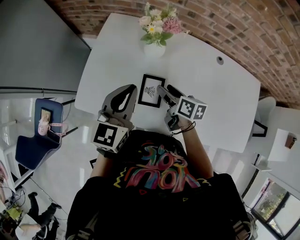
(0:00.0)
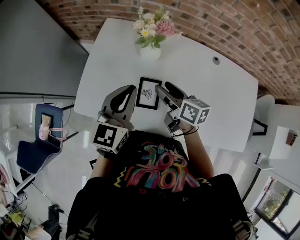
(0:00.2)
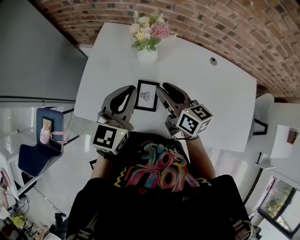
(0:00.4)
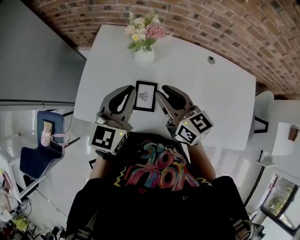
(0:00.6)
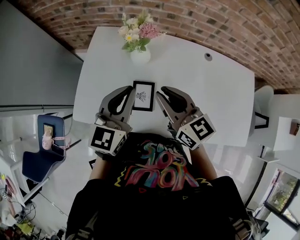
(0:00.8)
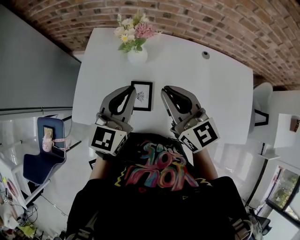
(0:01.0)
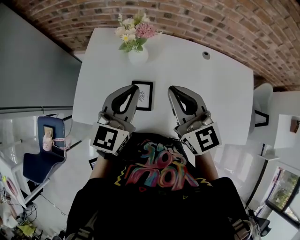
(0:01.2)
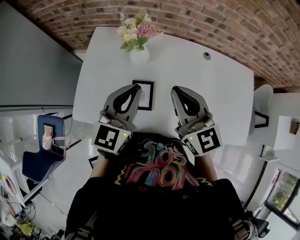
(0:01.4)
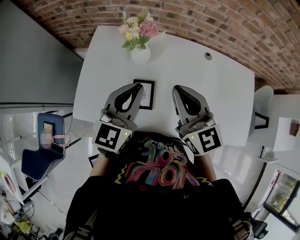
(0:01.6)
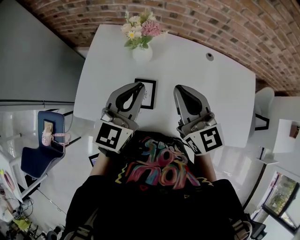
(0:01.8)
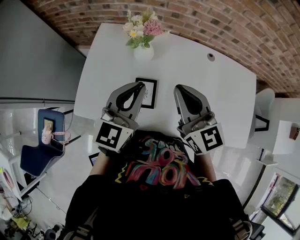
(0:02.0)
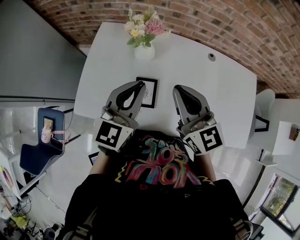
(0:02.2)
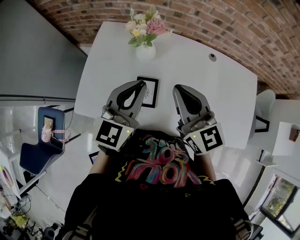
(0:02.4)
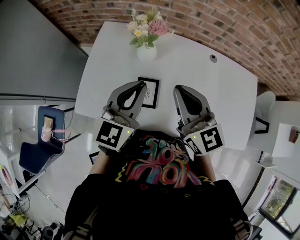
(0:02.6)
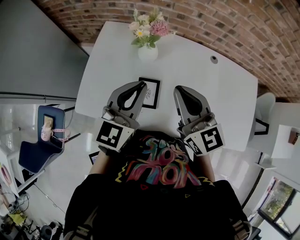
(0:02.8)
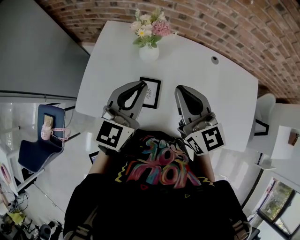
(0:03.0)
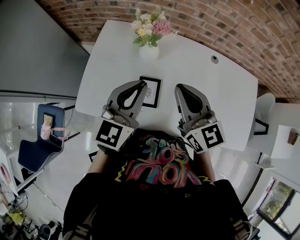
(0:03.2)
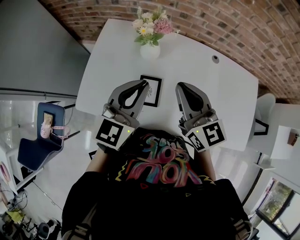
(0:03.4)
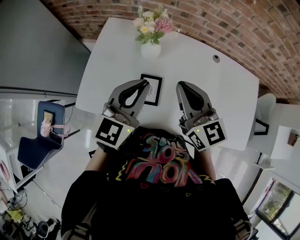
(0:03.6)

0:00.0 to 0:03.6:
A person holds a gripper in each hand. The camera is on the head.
0:00.0 to 0:01.8: The left gripper travels to the right and upward by roughly 10 cm; the right gripper is displaced upward by some 20 cm, rolls counterclockwise, seen from behind, by some 50 degrees, and closes up.
0:01.8 to 0:03.6: The grippers move only a little.

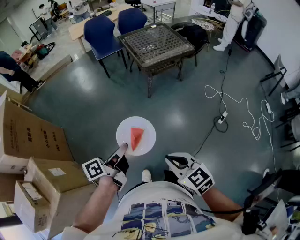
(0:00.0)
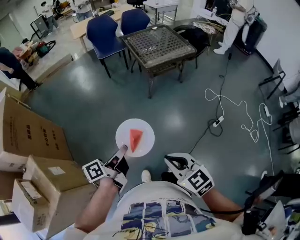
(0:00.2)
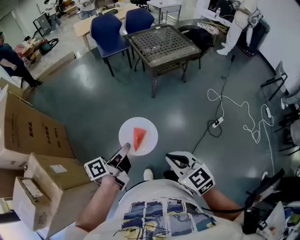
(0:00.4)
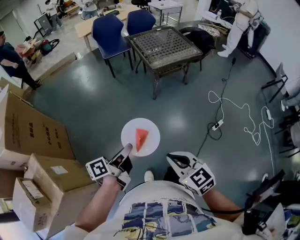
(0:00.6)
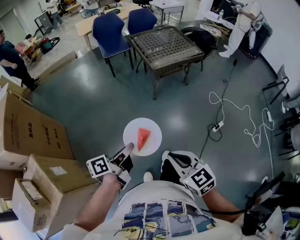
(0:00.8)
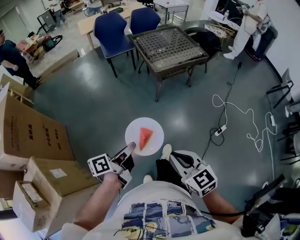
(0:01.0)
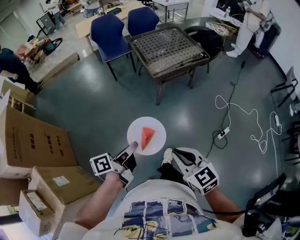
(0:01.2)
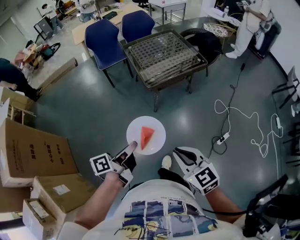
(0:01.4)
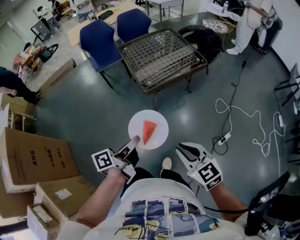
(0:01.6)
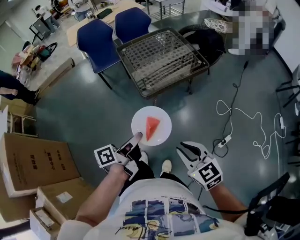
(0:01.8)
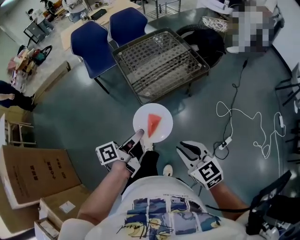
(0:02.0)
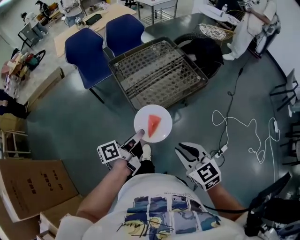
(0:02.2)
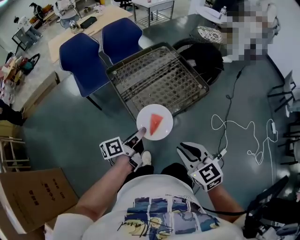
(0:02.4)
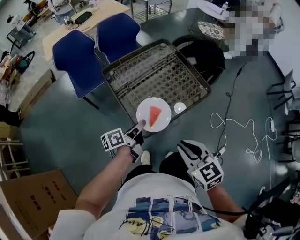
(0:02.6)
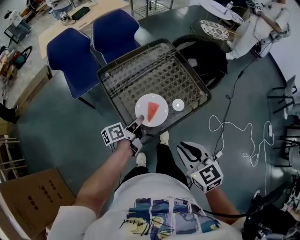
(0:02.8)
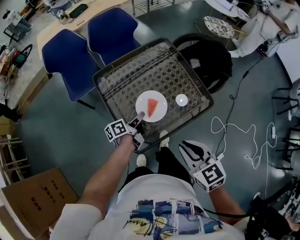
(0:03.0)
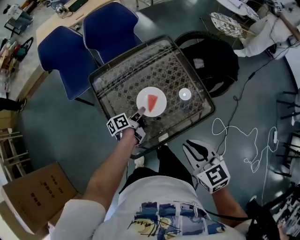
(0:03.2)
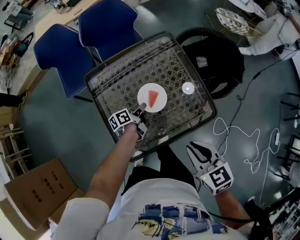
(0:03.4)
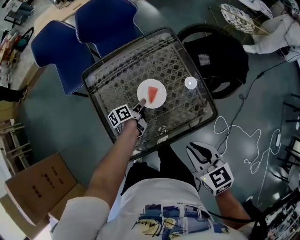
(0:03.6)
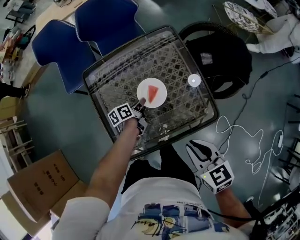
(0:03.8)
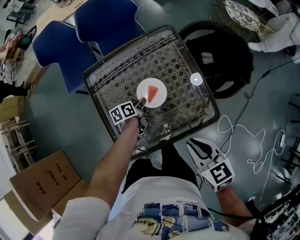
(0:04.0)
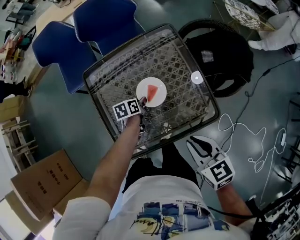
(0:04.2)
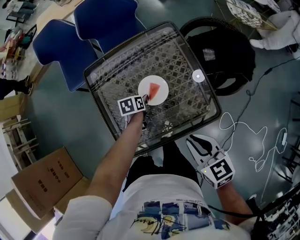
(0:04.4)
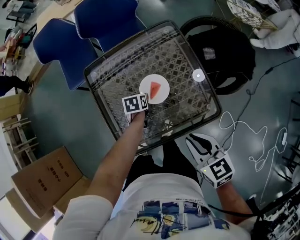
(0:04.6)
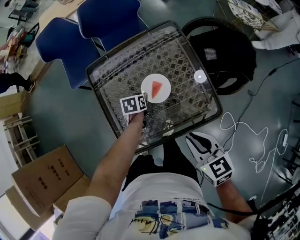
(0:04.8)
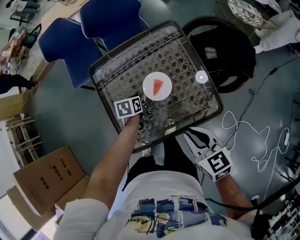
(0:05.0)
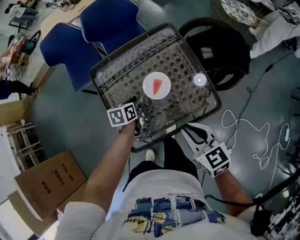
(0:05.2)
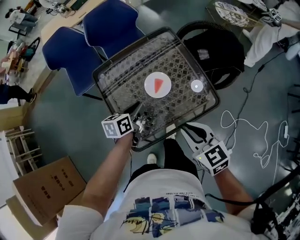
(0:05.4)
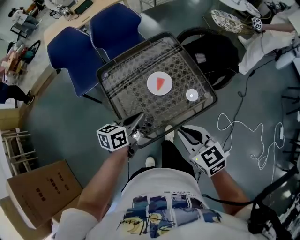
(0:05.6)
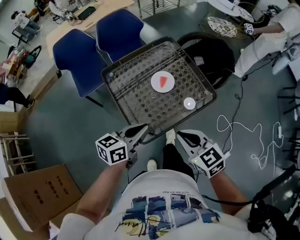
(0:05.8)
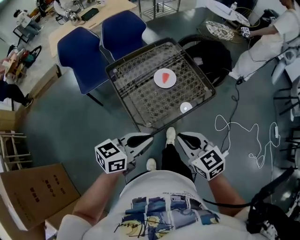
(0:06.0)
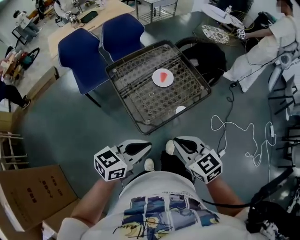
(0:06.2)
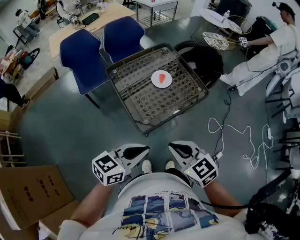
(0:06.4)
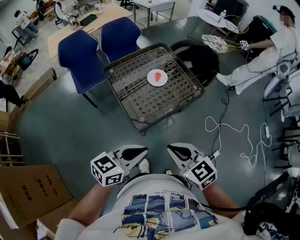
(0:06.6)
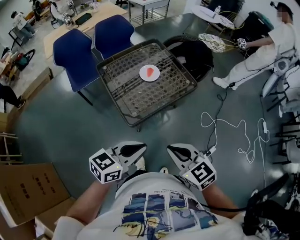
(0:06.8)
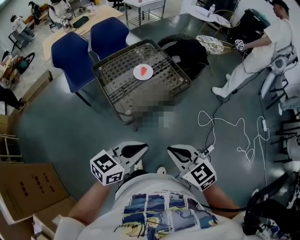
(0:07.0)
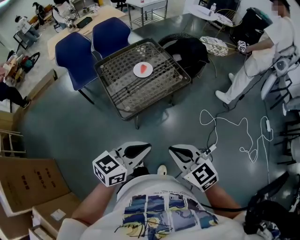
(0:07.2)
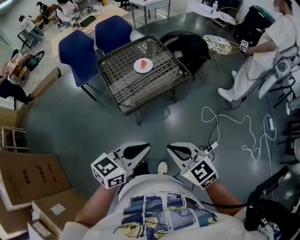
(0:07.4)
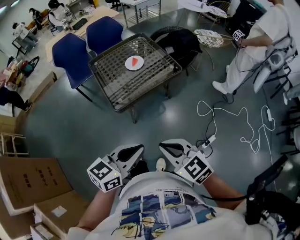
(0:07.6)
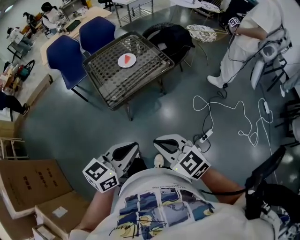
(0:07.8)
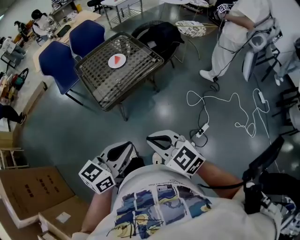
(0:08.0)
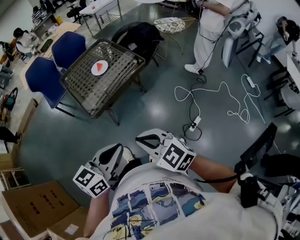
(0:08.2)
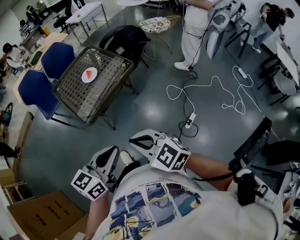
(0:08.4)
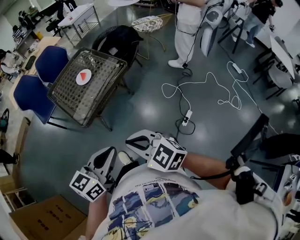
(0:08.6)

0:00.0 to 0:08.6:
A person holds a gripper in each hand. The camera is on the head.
0:00.0 to 0:01.4: Both grippers travel together forward, approximately 25 cm.
0:01.4 to 0:02.8: The two grippers travel together, forward, approximately 60 cm.
0:02.8 to 0:04.4: The left gripper moves forward, downward and to the right, roughly 30 cm, tilts its fingers about 50 degrees downward, and opens its fingers. The right gripper shifts approximately 30 cm forward, to the right and downward.
0:04.4 to 0:05.8: The right gripper travels backward, to the left and upward by about 25 cm. The left gripper goes roughly 40 cm upward and backward, points its fingers some 40 degrees further upward, and closes its fingers.
0:05.8 to 0:07.2: The two grippers go approximately 30 cm backward and to the right.
0:07.2 to 0:08.6: The two grippers go approximately 10 cm backward and to the right.

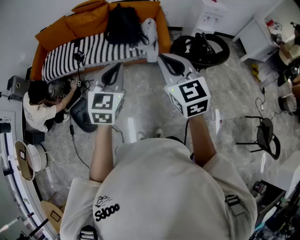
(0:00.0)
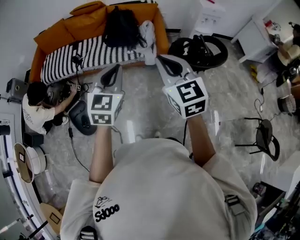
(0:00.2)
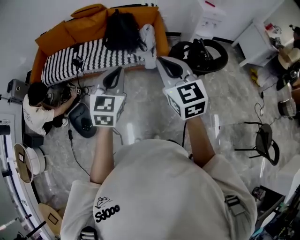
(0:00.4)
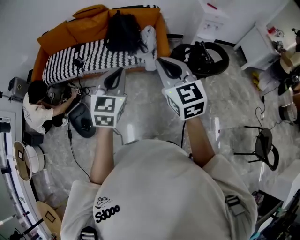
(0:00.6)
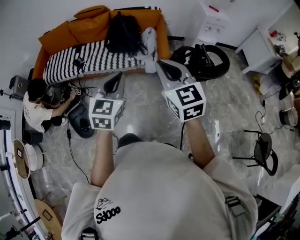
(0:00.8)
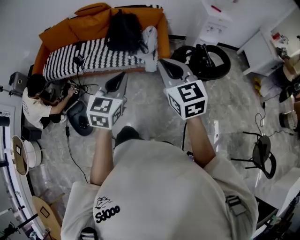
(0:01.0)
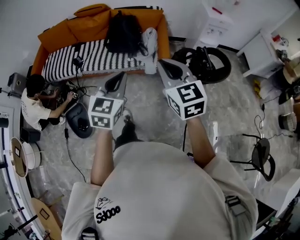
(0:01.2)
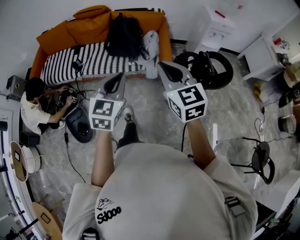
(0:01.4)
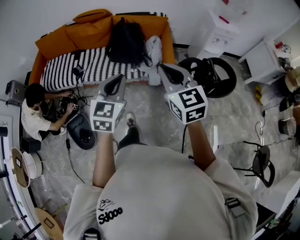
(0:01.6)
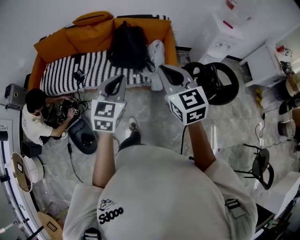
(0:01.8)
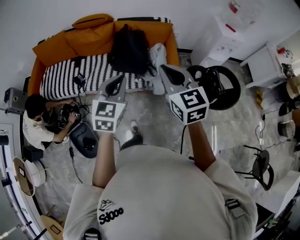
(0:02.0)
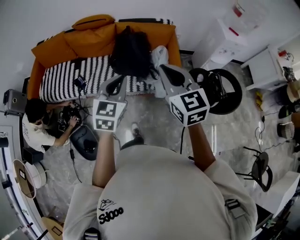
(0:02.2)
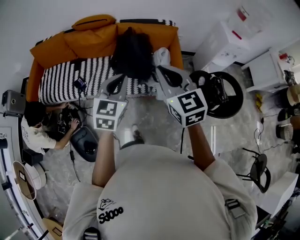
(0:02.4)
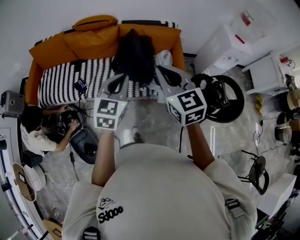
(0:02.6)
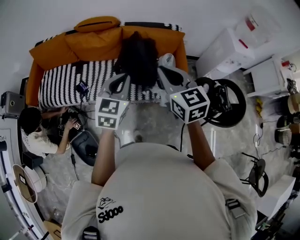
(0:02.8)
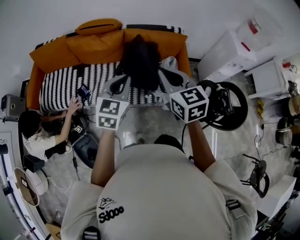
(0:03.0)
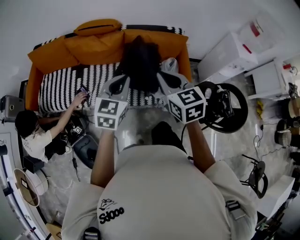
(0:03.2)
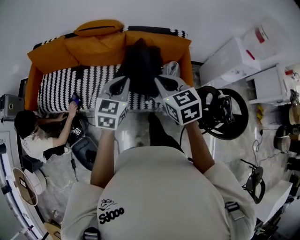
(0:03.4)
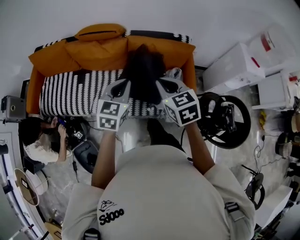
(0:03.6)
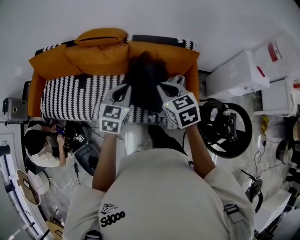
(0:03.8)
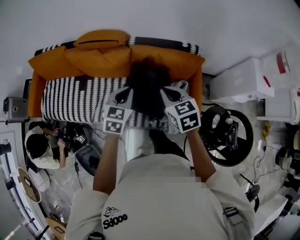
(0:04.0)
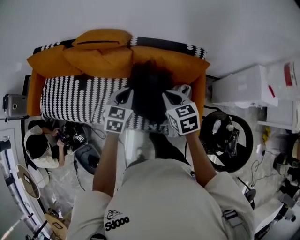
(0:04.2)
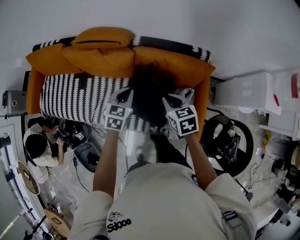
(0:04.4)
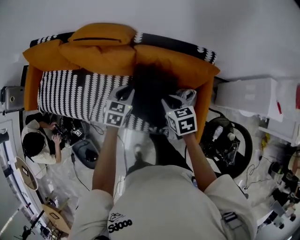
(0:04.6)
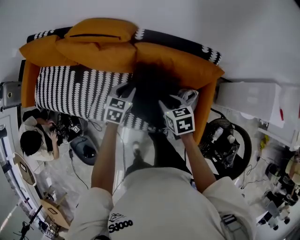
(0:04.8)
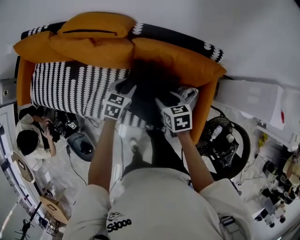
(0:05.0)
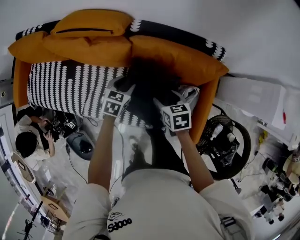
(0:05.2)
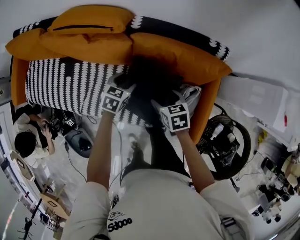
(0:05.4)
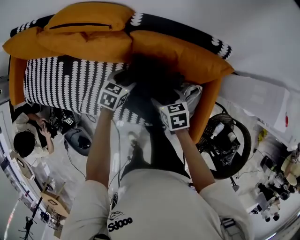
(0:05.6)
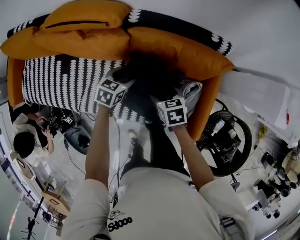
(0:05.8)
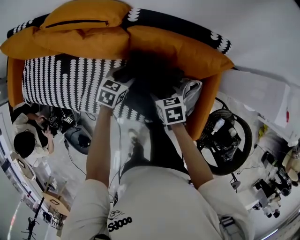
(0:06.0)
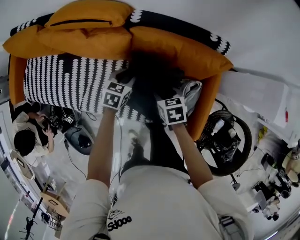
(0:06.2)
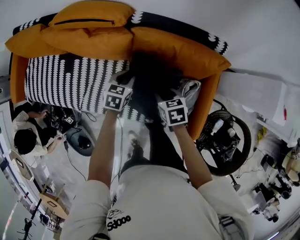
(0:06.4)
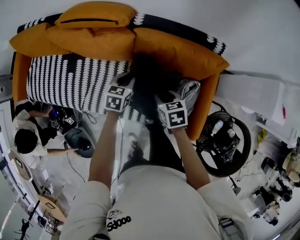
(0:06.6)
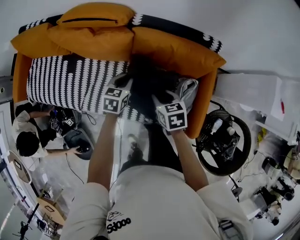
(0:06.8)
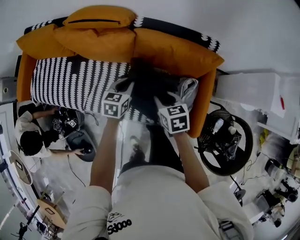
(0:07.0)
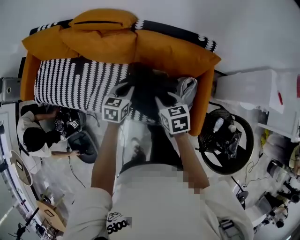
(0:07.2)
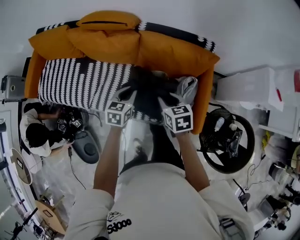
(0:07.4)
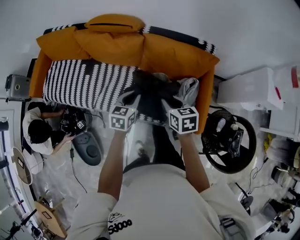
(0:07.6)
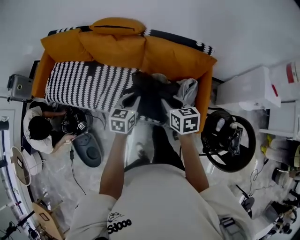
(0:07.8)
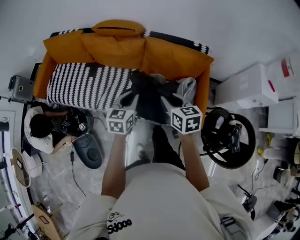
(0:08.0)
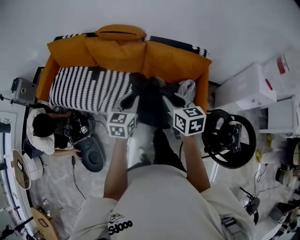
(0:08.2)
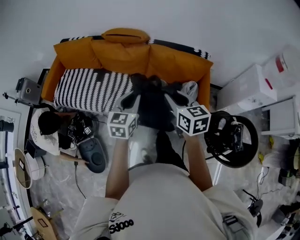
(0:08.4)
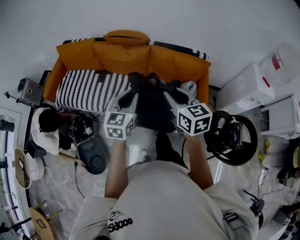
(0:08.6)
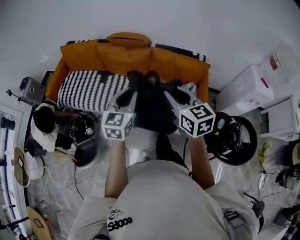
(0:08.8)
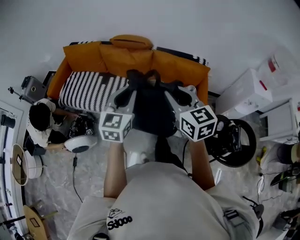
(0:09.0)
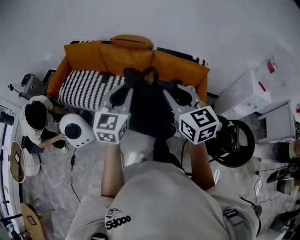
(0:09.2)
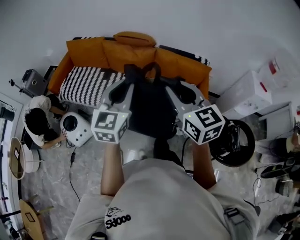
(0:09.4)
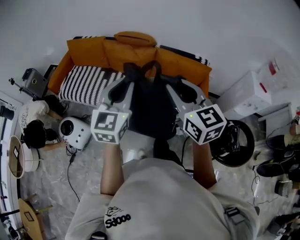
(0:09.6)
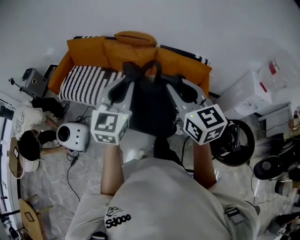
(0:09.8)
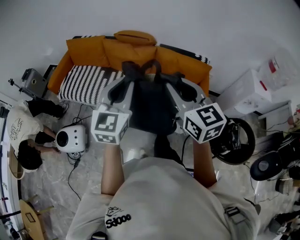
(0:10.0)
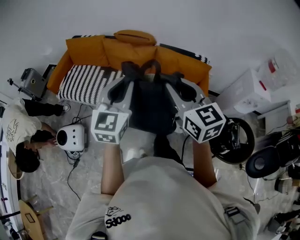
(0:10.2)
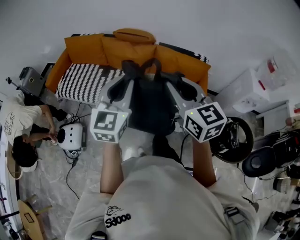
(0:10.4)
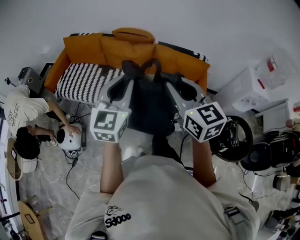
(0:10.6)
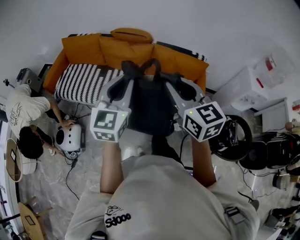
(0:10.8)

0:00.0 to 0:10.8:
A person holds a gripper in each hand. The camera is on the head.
0:00.0 to 0:01.6: Both grippers travel together forward, roughly 20 cm.
0:01.6 to 0:03.0: The right gripper is displaced forward and to the left by roughly 35 cm. The left gripper goes approximately 35 cm forward.
0:03.0 to 0:04.6: The grippers both shift forward and downward by some 40 cm. The left gripper changes its angle by roughly 30 degrees; the right gripper changes its angle by some 30 degrees.
0:04.6 to 0:06.2: Both grippers move downward, some 15 cm. The right gripper opens, then closes again. The left gripper opens, then closes again.
0:06.2 to 0:07.8: The right gripper goes approximately 30 cm upward and backward, and rotates roughly 20 degrees; the left gripper goes about 35 cm backward and upward, and turns by some 20 degrees.
0:07.8 to 0:09.2: The grippers both shift upward and backward by roughly 35 cm. The right gripper rotates approximately 40 degrees. The left gripper changes its angle by some 30 degrees.
0:09.2 to 0:10.8: The grippers make only small movements.
